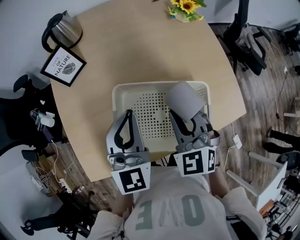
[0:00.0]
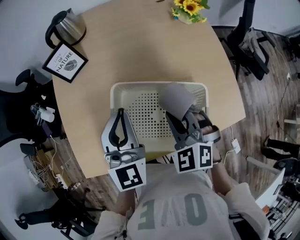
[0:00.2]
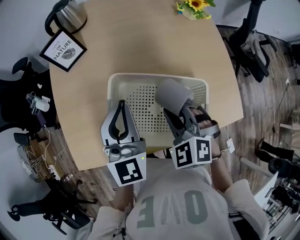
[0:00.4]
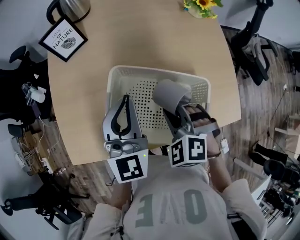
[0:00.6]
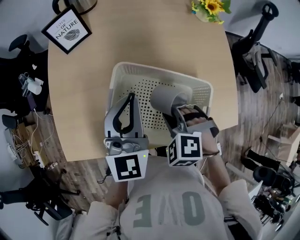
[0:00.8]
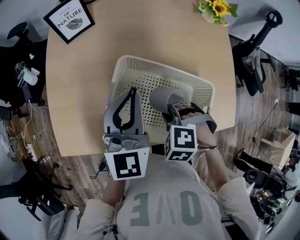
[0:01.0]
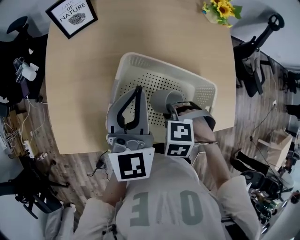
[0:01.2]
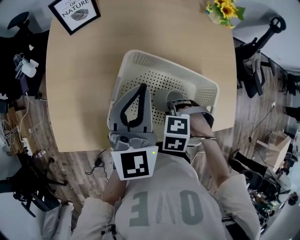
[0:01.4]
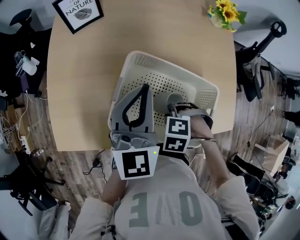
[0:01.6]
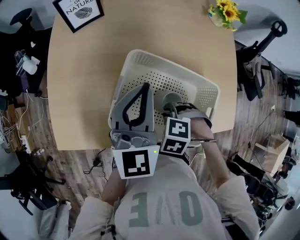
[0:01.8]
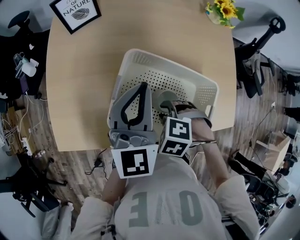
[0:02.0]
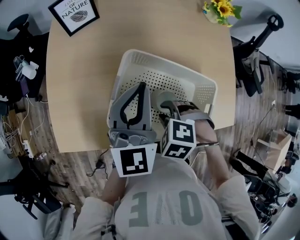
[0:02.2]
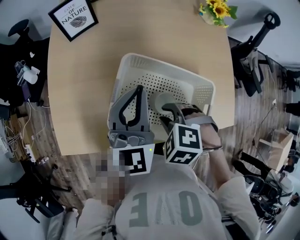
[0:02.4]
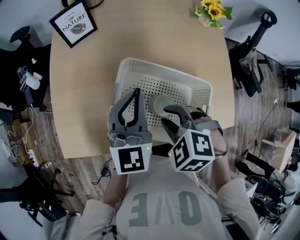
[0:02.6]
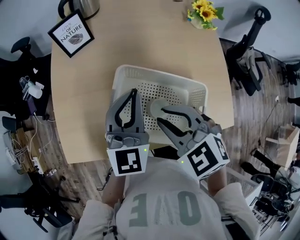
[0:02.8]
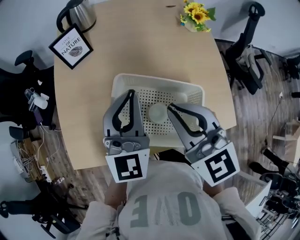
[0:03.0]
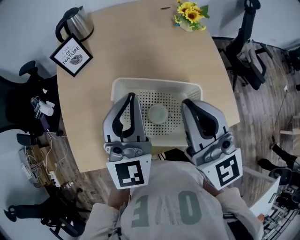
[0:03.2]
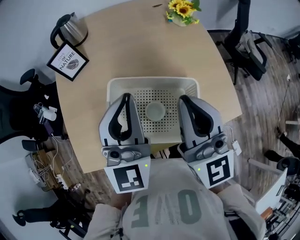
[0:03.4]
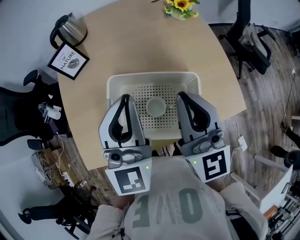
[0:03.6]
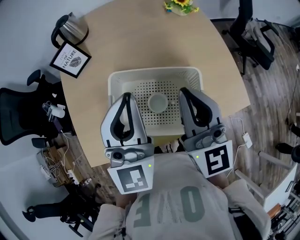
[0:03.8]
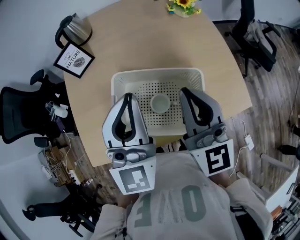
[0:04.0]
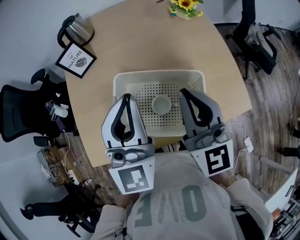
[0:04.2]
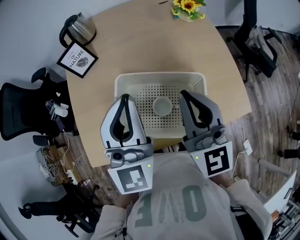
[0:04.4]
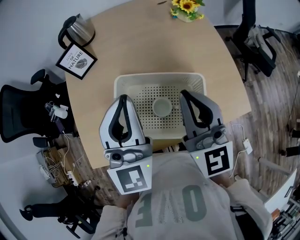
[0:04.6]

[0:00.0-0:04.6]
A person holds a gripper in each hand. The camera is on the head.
0:00.0 to 0:01.6: The right gripper heads downward, covering roughly 20 cm, and tilts its fingers about 50 degrees downward.
0:01.6 to 0:03.0: The left gripper goes roughly 5 cm upward, while the right gripper moves upward, roughly 30 cm, and tilts its fingers roughly 70 degrees upward.
0:03.0 to 0:04.6: The right gripper travels to the right by some 5 cm, and turns by about 30 degrees; the left gripper is displaced upward by roughly 10 cm.

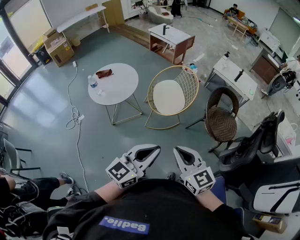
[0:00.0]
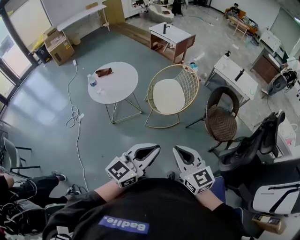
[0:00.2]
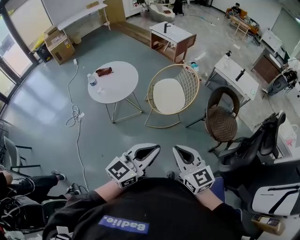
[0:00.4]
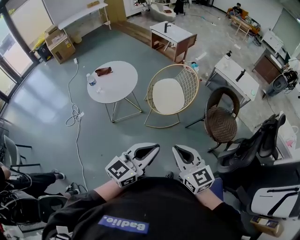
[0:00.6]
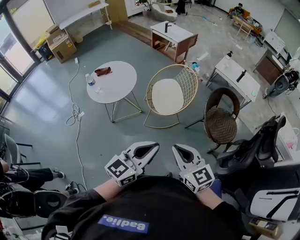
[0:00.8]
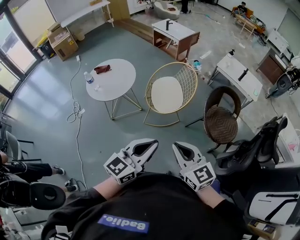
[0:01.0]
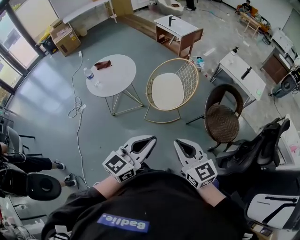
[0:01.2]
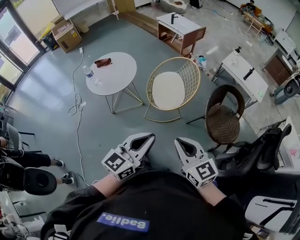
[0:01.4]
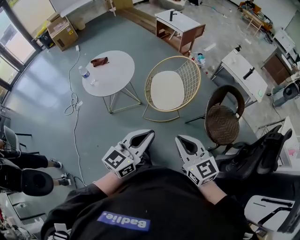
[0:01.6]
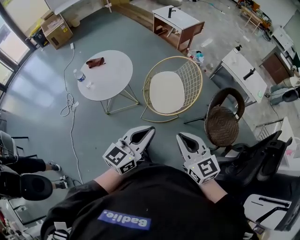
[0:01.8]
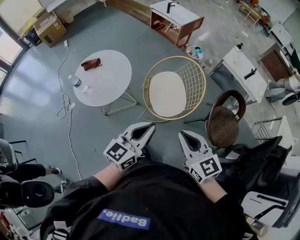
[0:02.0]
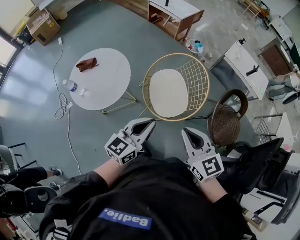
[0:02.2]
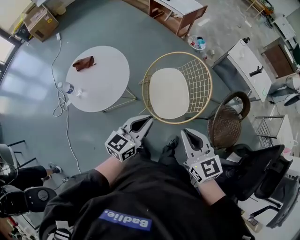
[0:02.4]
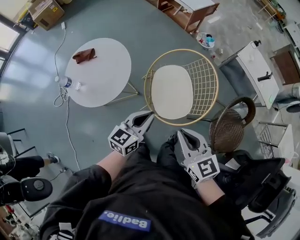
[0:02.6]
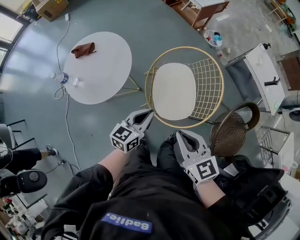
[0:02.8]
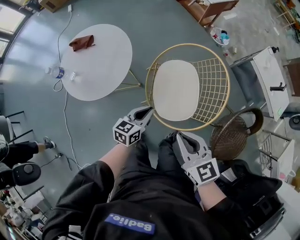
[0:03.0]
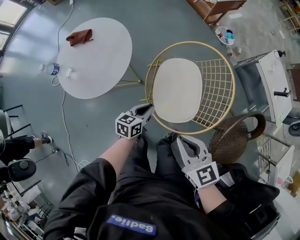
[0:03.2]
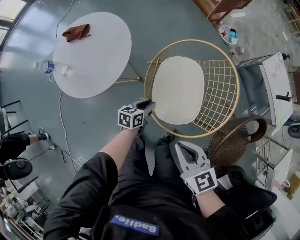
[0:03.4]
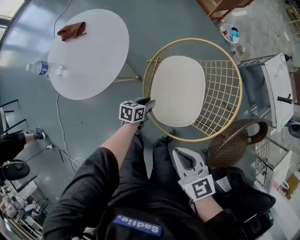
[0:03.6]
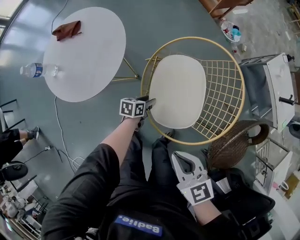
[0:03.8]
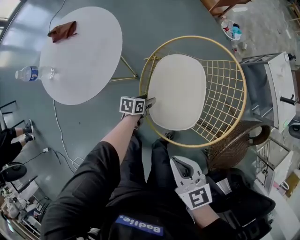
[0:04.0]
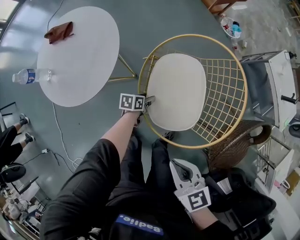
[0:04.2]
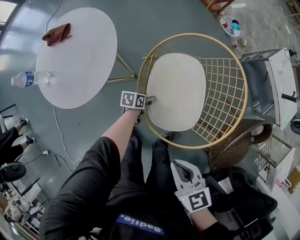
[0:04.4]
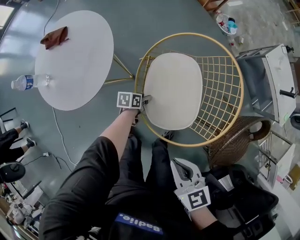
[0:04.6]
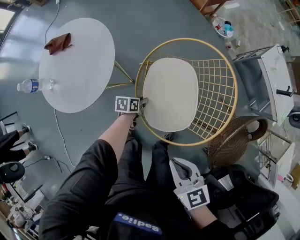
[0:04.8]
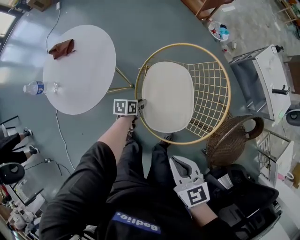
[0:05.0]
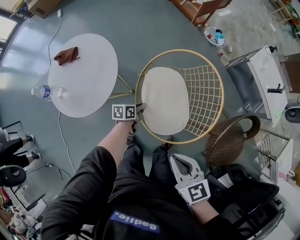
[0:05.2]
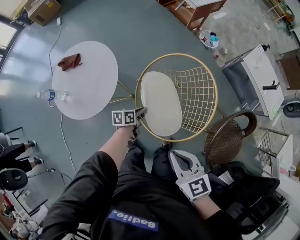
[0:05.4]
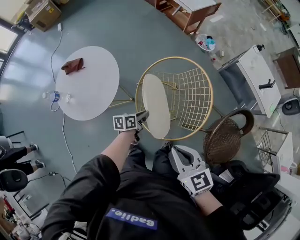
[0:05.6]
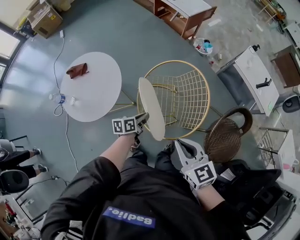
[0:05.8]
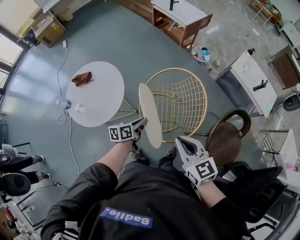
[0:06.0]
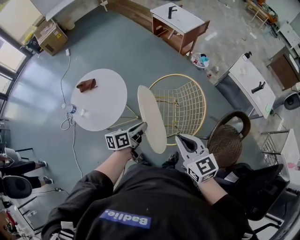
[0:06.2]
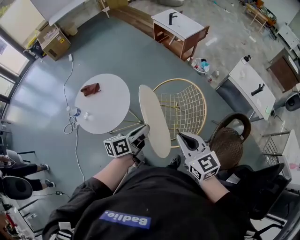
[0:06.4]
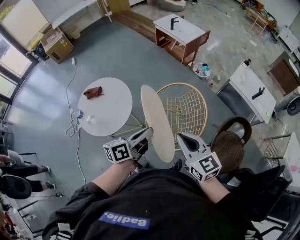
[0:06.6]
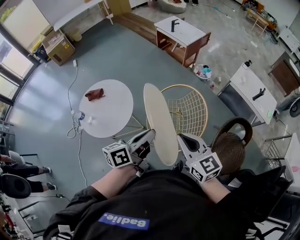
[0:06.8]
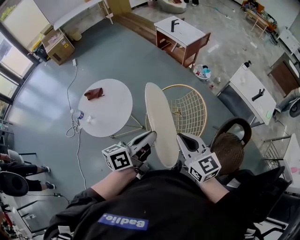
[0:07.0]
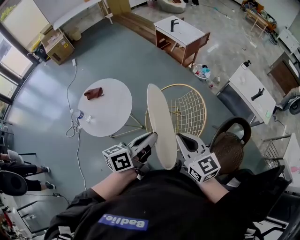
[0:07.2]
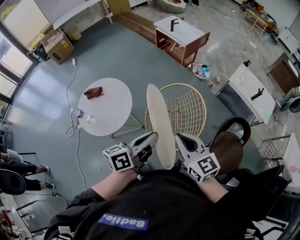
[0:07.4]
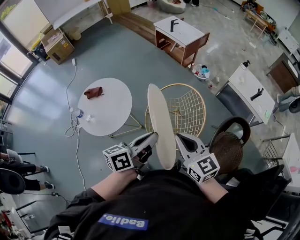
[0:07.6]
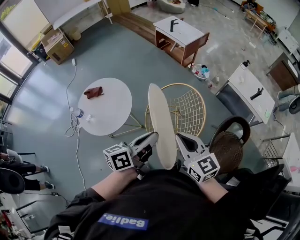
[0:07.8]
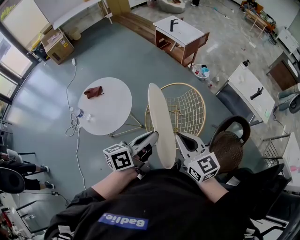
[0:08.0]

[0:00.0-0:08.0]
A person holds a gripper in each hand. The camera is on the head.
0:00.0 to 0:01.6: The left gripper heads forward, covering some 10 cm, while the right gripper heads forward and to the right, covering roughly 15 cm.
0:01.6 to 0:03.2: The right gripper heads forward and downward, covering approximately 30 cm, and turns by approximately 20 degrees. The left gripper is displaced downward and forward by roughly 50 cm, and turns by about 40 degrees.
0:03.2 to 0:04.8: The right gripper shifts by approximately 5 cm. Meanwhile the left gripper moves downward, about 20 cm, turns by approximately 30 degrees, and opens, then closes once more.
0:04.8 to 0:06.4: The right gripper is displaced upward by approximately 20 cm, and rotates about 20 degrees. Meanwhile the left gripper heads upward, covering roughly 50 cm, and points its fingers about 30 degrees further upward.
0:06.4 to 0:08.0: The left gripper goes approximately 10 cm upward.

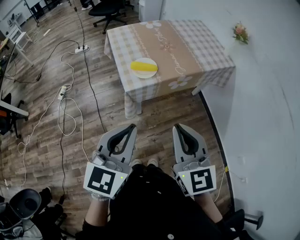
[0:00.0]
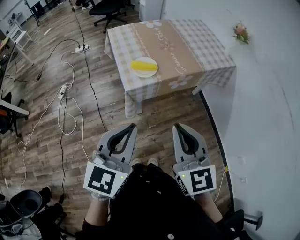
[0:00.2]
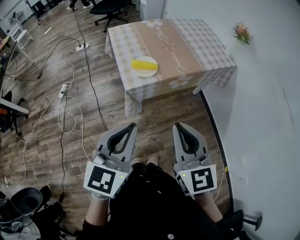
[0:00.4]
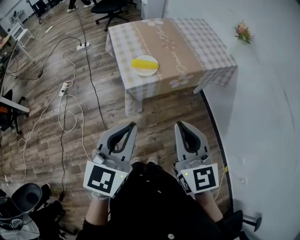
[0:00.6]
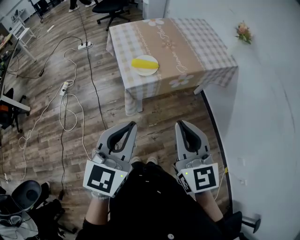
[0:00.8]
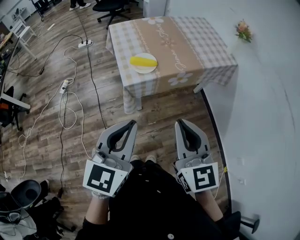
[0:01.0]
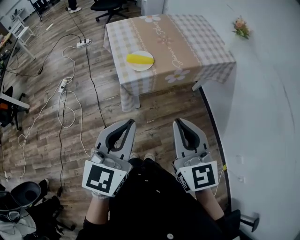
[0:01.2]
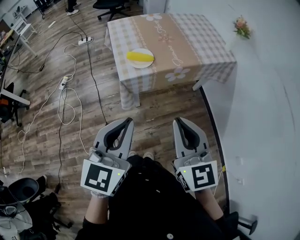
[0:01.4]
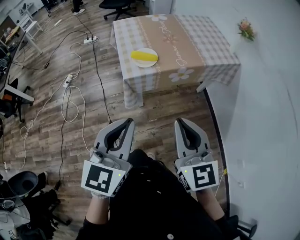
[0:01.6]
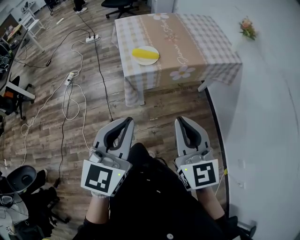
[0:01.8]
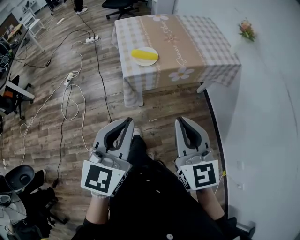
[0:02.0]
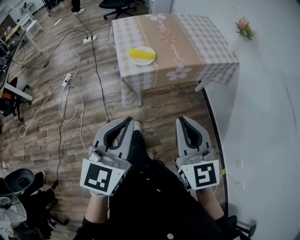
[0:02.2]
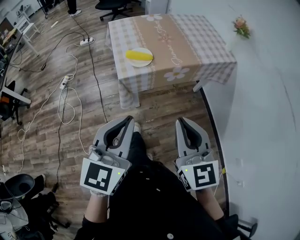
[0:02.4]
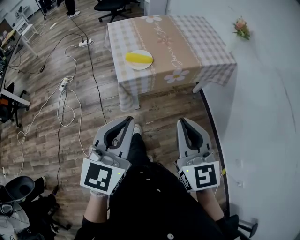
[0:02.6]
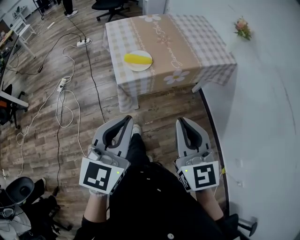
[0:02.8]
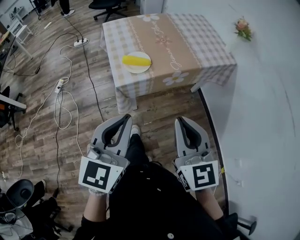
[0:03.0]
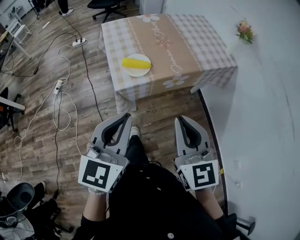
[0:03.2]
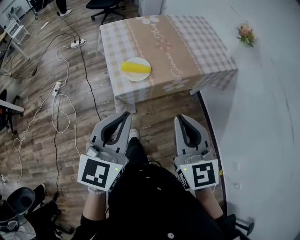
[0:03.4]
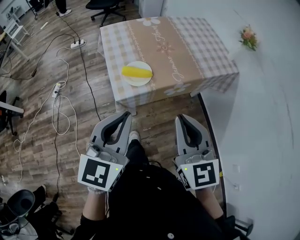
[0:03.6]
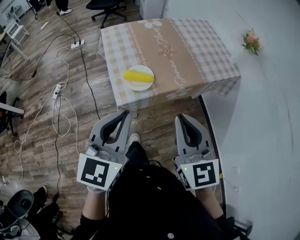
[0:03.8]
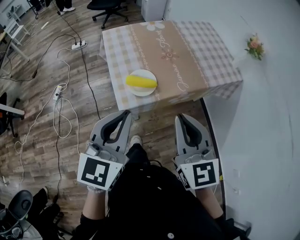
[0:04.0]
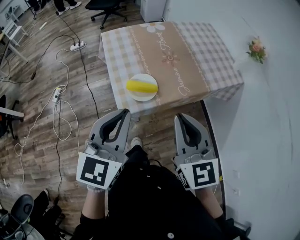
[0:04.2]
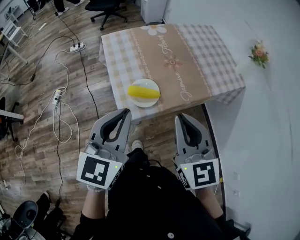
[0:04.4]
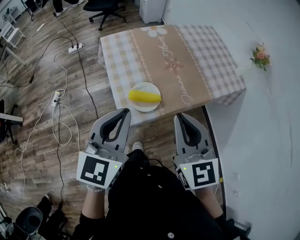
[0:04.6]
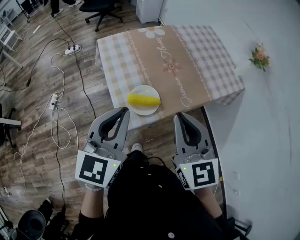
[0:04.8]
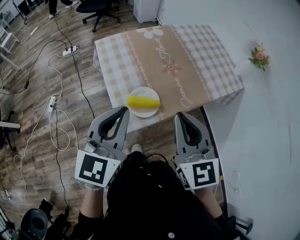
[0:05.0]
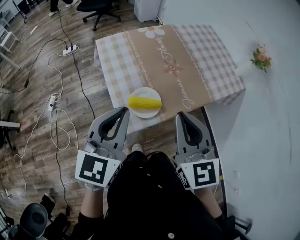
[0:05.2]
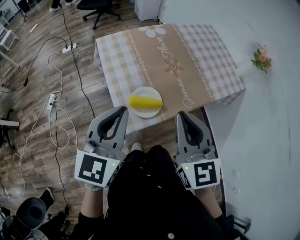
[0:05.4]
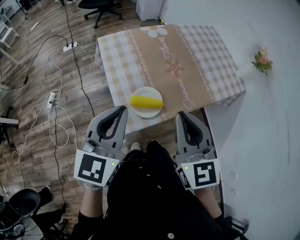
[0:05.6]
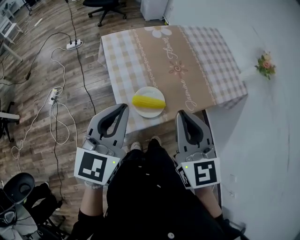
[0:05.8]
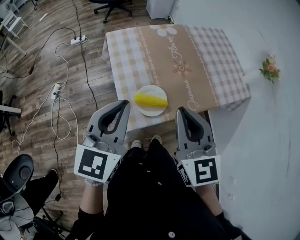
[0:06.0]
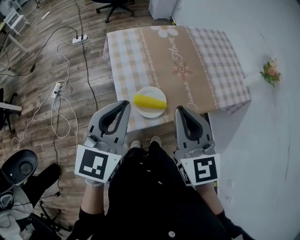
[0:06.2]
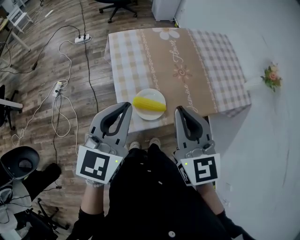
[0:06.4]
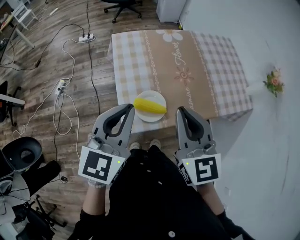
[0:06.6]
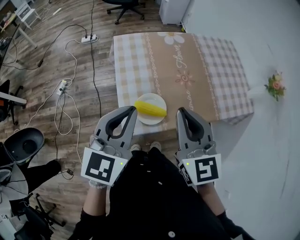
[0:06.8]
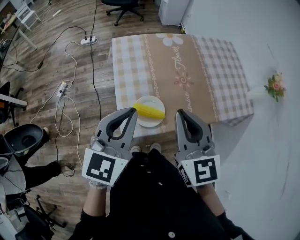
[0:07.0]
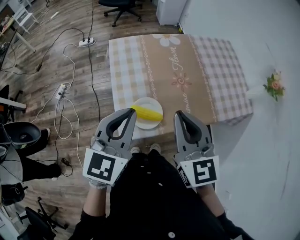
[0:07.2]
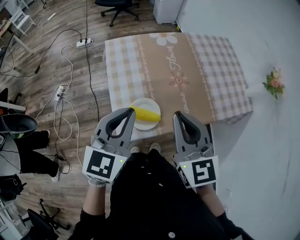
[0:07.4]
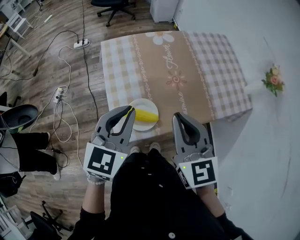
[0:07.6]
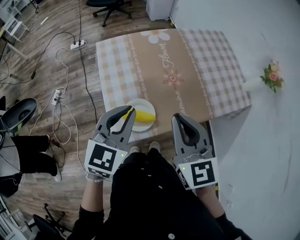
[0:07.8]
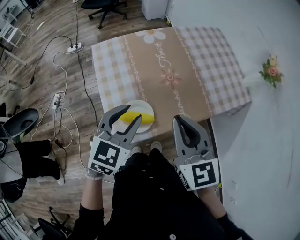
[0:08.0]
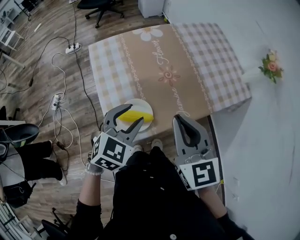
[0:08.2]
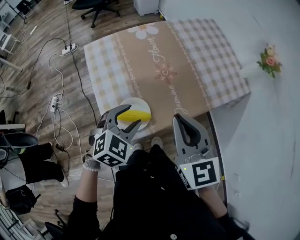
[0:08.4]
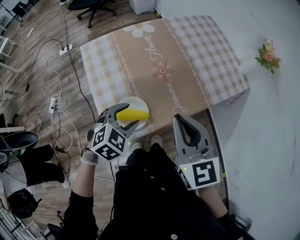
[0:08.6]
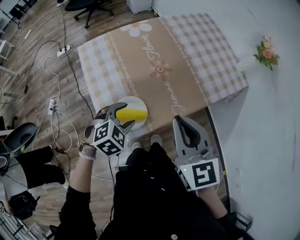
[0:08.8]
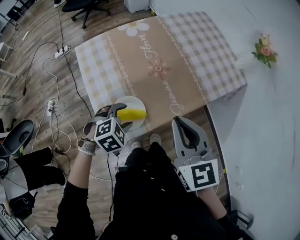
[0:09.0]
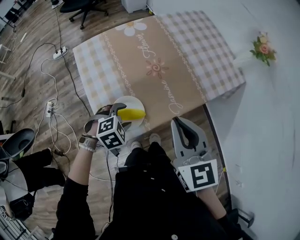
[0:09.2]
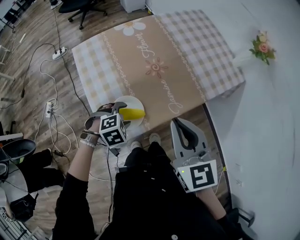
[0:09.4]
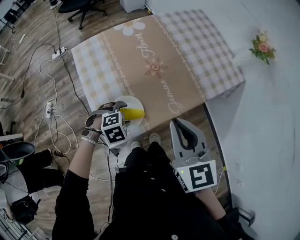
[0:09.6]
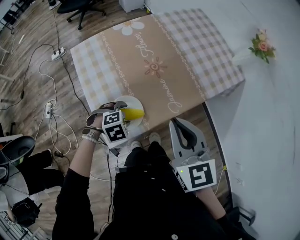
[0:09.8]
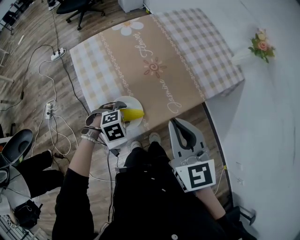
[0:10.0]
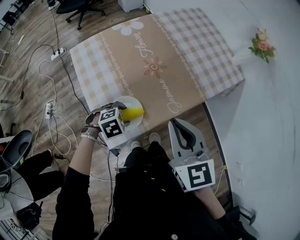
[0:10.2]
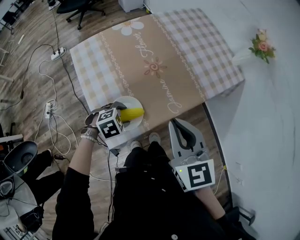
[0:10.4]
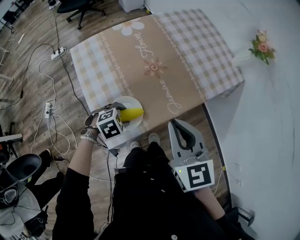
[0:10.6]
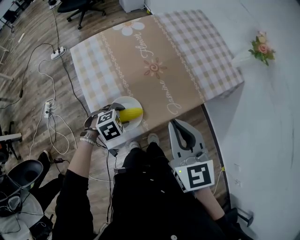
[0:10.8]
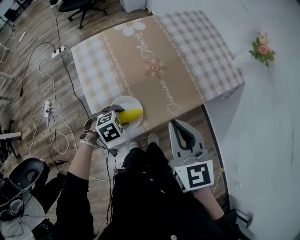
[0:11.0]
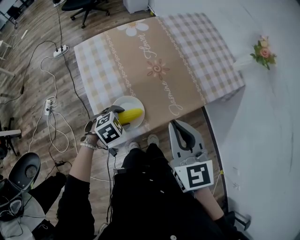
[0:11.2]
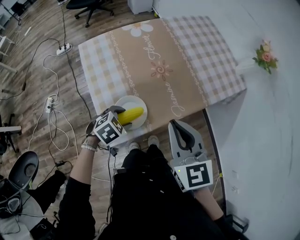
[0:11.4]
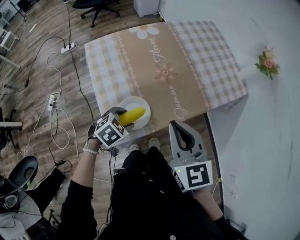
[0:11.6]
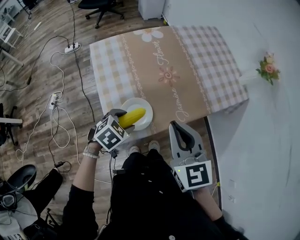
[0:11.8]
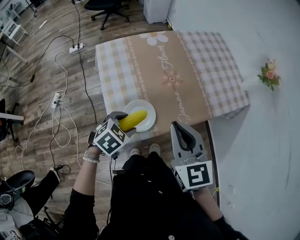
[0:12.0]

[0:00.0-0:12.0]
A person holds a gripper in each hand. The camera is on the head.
0:00.0 to 0:01.6: The left gripper ends up some 5 cm from where it was. The right gripper travels to the right by roughly 5 cm.
0:01.6 to 0:03.0: The two grippers go about 5 cm forward.
0:03.0 to 0:04.4: Both grippers move forward, approximately 20 cm.
0:04.4 to 0:06.0: The right gripper shifts roughly 10 cm forward. The left gripper goes about 10 cm forward and to the left.
0:06.0 to 0:07.6: The left gripper shifts about 10 cm to the right and forward. Meanwhile the right gripper moves forward and to the right, approximately 10 cm.
0:07.6 to 0:09.0: The left gripper heads downward, covering approximately 20 cm, angles its fingers downward, by approximately 40 degrees, and opens up; the right gripper heads to the right, covering about 5 cm.
0:09.0 to 0:10.4: The left gripper moves downward, some 5 cm.
0:10.4 to 0:12.0: The right gripper ends up about 5 cm from where it was. The left gripper moves upward, roughly 10 cm, and swivels roughly 30 degrees.
